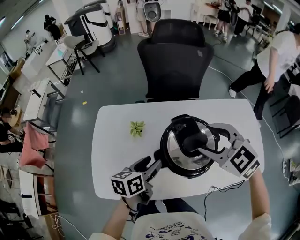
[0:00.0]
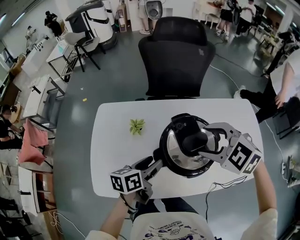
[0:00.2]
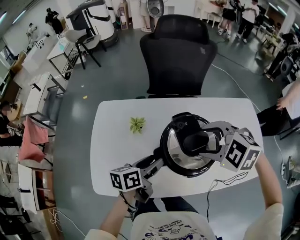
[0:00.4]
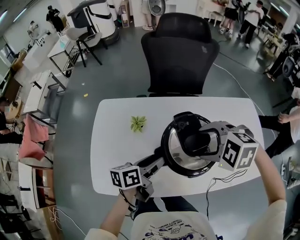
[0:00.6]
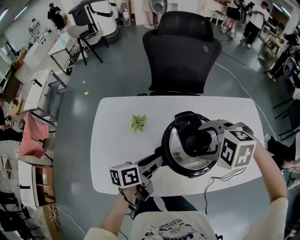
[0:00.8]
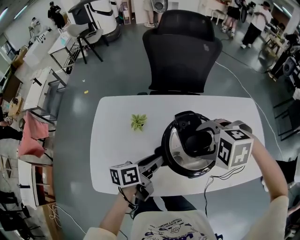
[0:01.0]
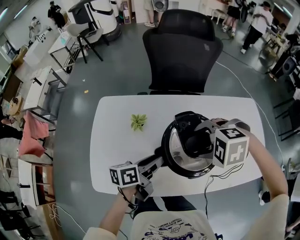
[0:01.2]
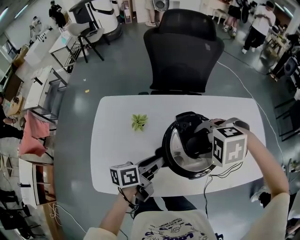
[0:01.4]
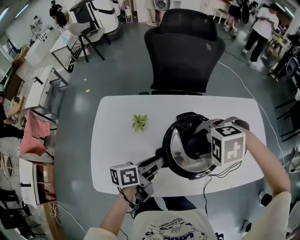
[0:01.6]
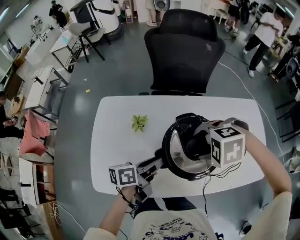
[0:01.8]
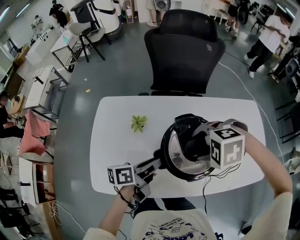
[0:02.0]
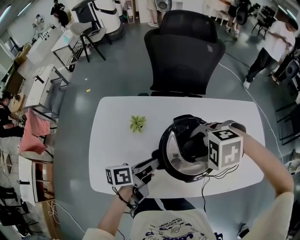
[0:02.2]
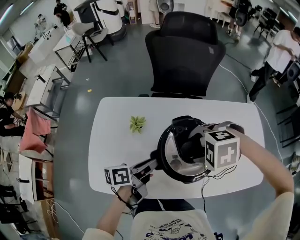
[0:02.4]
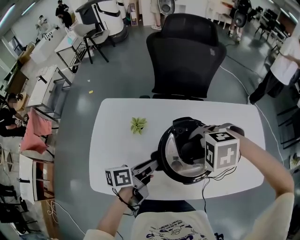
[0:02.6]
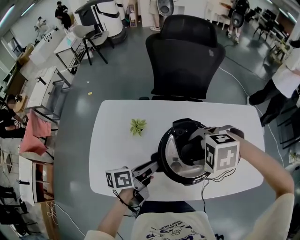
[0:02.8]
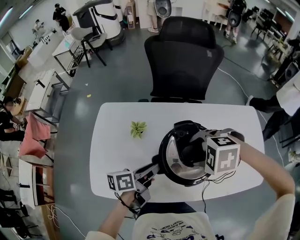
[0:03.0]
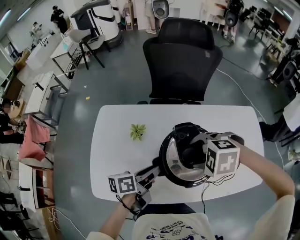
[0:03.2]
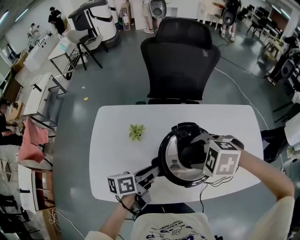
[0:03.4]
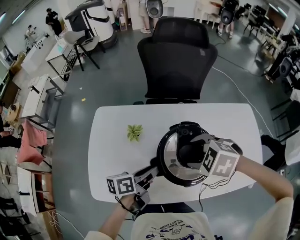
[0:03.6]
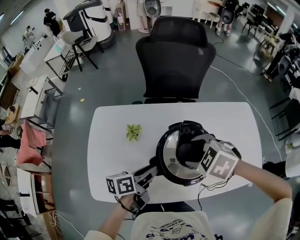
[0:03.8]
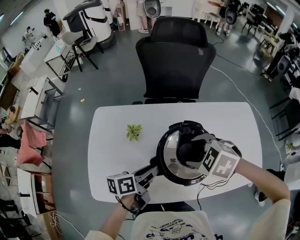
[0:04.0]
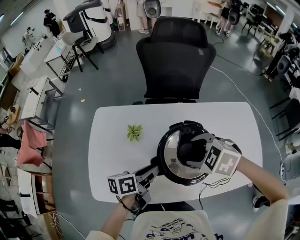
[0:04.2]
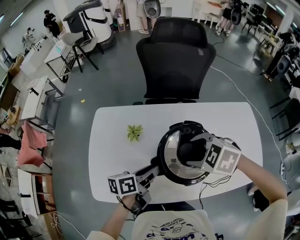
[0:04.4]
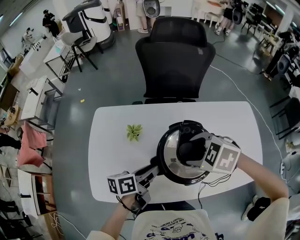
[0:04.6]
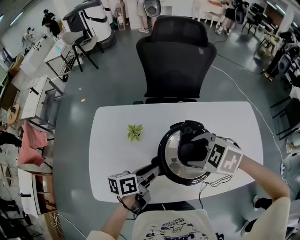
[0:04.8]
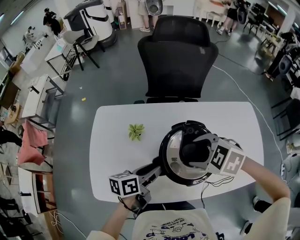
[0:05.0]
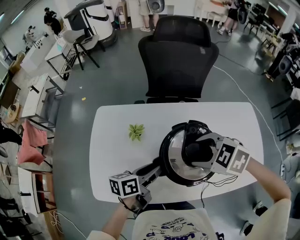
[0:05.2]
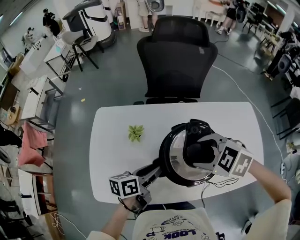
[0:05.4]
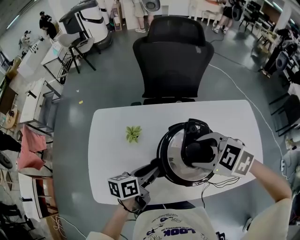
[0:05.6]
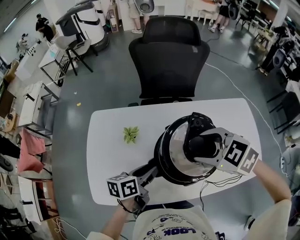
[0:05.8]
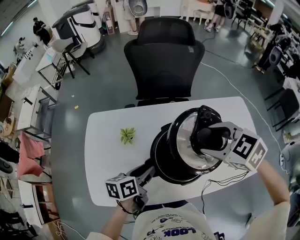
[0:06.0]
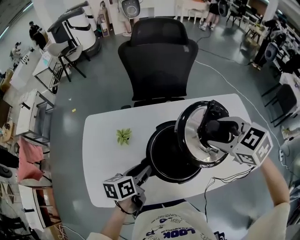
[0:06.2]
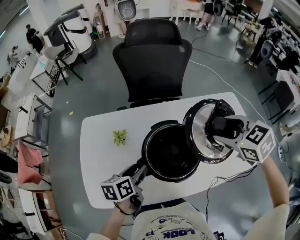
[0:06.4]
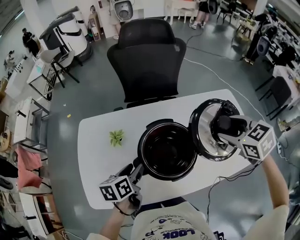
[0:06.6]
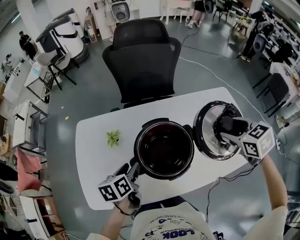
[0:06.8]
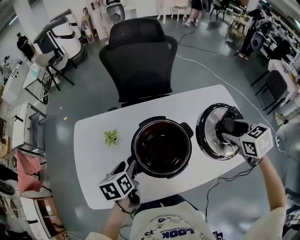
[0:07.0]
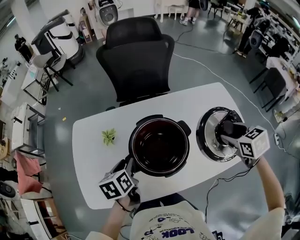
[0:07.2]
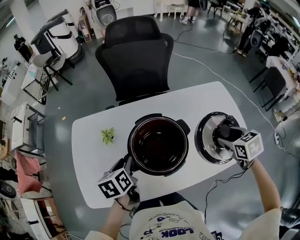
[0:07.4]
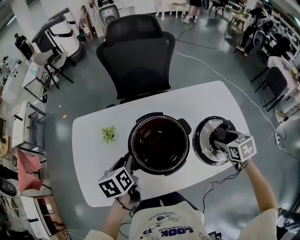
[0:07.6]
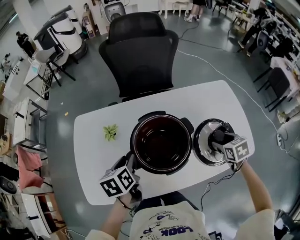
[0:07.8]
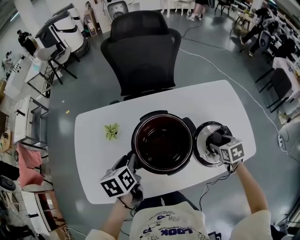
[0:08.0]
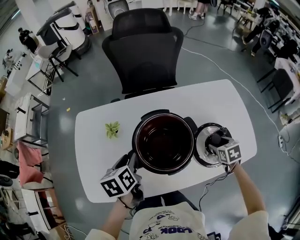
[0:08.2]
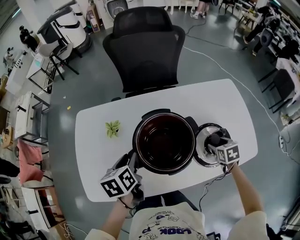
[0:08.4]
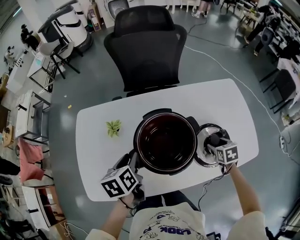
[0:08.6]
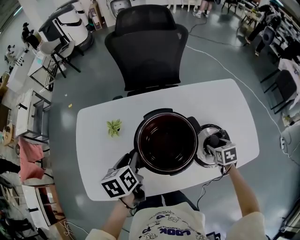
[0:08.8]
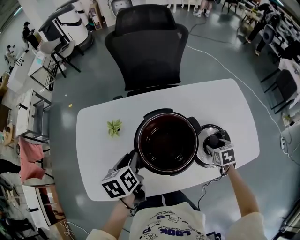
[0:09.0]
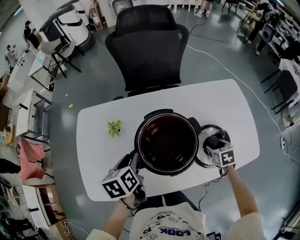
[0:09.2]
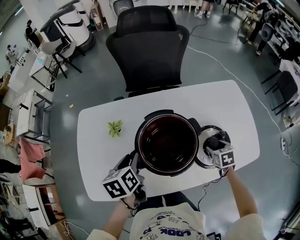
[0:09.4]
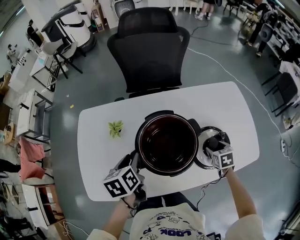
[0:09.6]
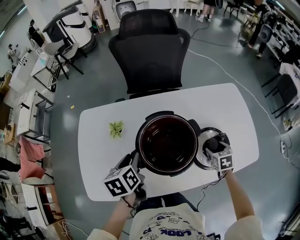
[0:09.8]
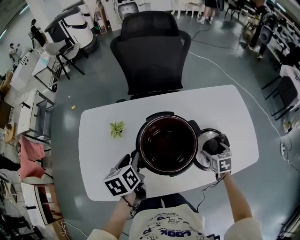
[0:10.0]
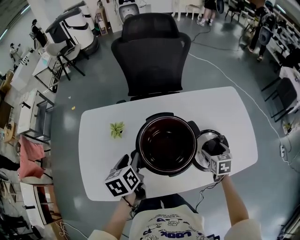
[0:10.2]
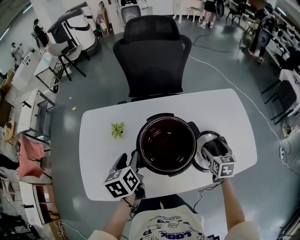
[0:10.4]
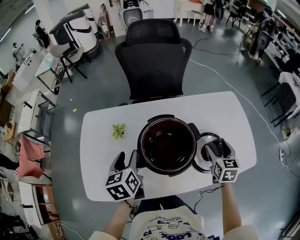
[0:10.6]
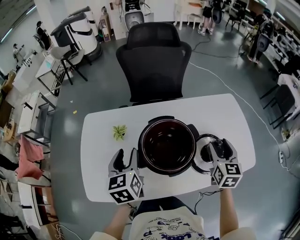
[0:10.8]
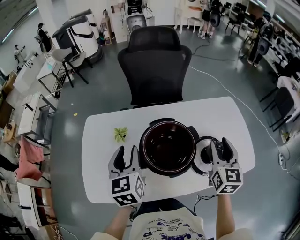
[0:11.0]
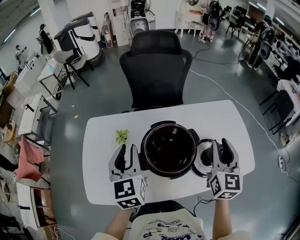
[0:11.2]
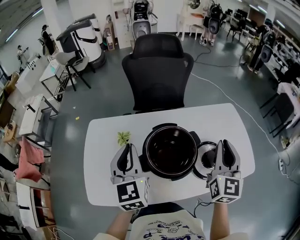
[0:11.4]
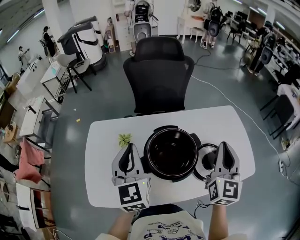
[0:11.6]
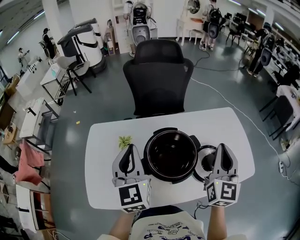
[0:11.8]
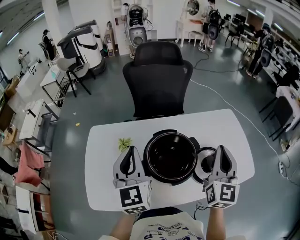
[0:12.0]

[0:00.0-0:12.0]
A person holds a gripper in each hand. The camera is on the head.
0:00.0 to 0:01.6: The left gripper changes its angle by approximately 20 degrees, and closes, while the right gripper moves downward, approximately 10 cm, and tips its fingers downward by roughly 40 degrees.
0:01.6 to 0:03.0: There are only small adjustments of the grippers.
0:03.0 to 0:04.4: The right gripper turns by roughly 30 degrees.
0:04.4 to 0:06.0: The right gripper is displaced to the right and upward by about 10 cm, and changes its angle by roughly 20 degrees.
0:06.0 to 0:07.6: The right gripper moves to the right and downward, approximately 25 cm, and turns by roughly 40 degrees, while the left gripper changes its angle by roughly 30 degrees.
0:07.6 to 0:09.0: The right gripper travels downward by some 15 cm.
0:09.0 to 0:10.4: The right gripper is displaced upward by approximately 5 cm, and changes its angle by roughly 20 degrees.
0:10.4 to 0:12.0: Both grippers travel together upward, approximately 25 cm. The left gripper angles its fingers upward, by roughly 30 degrees, and closes up. The right gripper angles its fingers upward, by some 40 degrees, and closes.

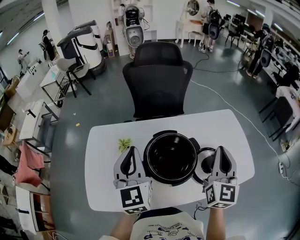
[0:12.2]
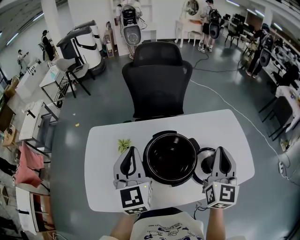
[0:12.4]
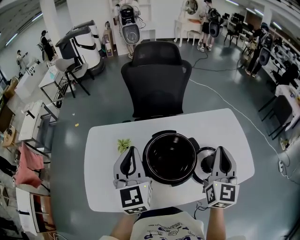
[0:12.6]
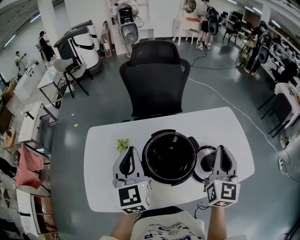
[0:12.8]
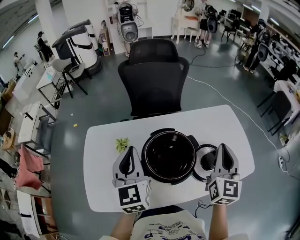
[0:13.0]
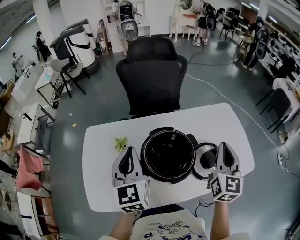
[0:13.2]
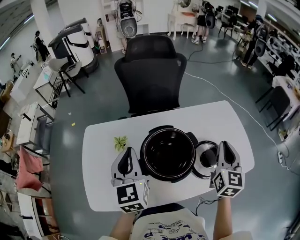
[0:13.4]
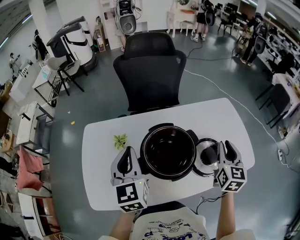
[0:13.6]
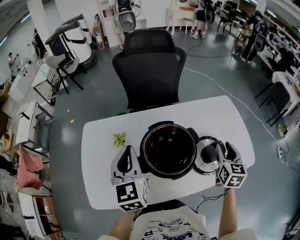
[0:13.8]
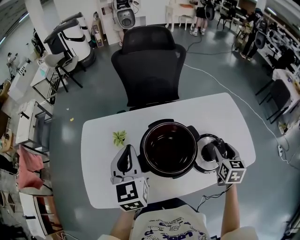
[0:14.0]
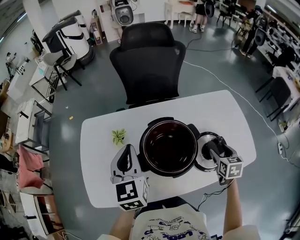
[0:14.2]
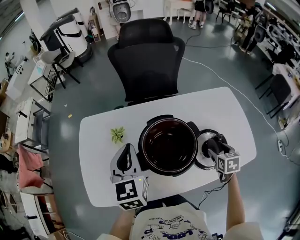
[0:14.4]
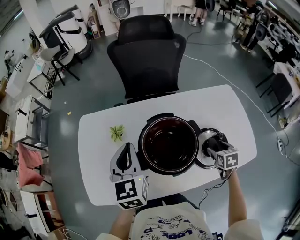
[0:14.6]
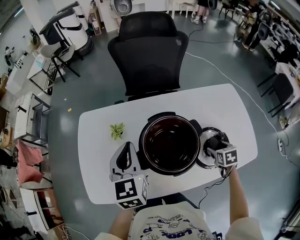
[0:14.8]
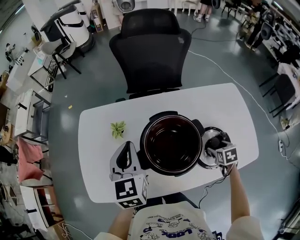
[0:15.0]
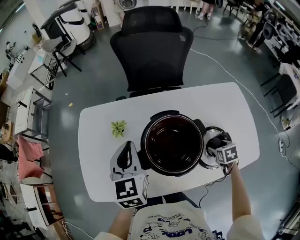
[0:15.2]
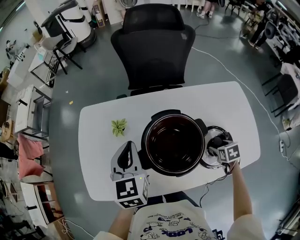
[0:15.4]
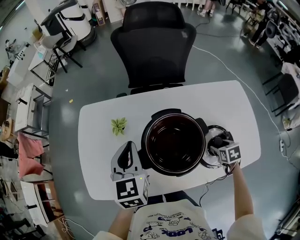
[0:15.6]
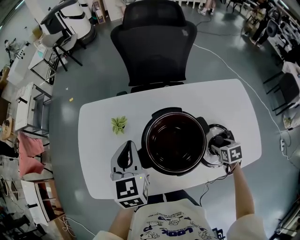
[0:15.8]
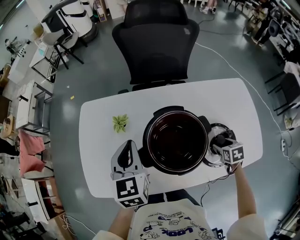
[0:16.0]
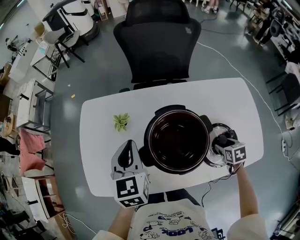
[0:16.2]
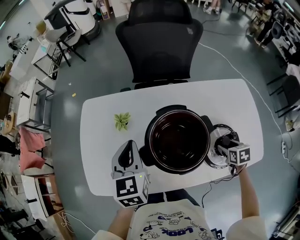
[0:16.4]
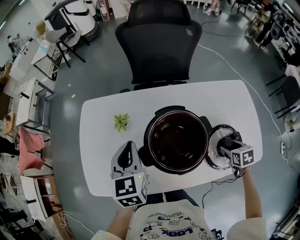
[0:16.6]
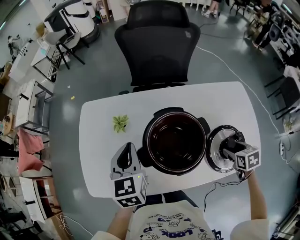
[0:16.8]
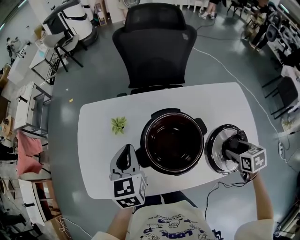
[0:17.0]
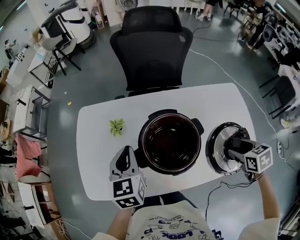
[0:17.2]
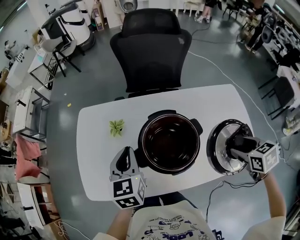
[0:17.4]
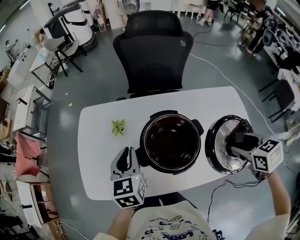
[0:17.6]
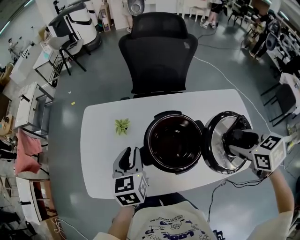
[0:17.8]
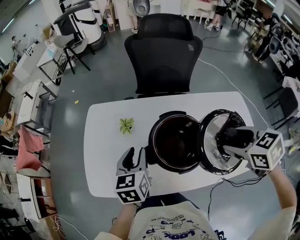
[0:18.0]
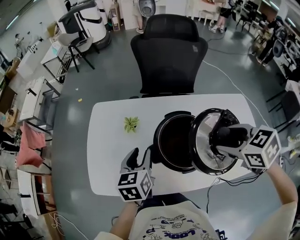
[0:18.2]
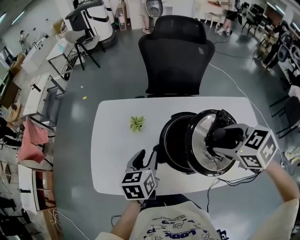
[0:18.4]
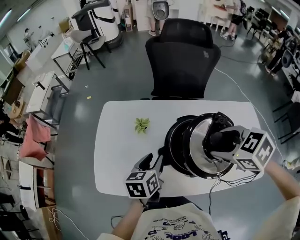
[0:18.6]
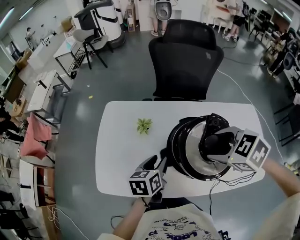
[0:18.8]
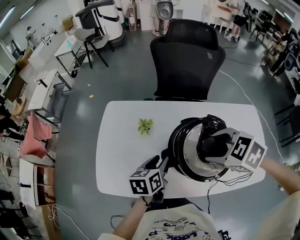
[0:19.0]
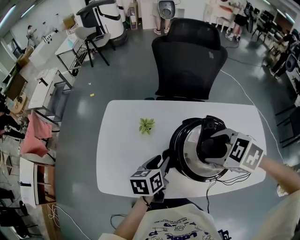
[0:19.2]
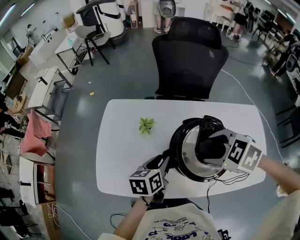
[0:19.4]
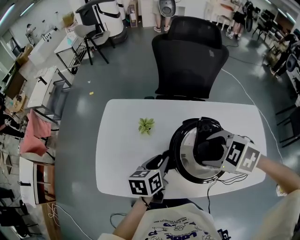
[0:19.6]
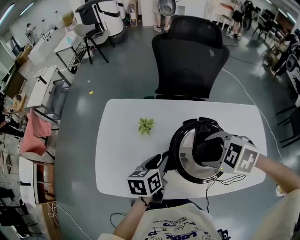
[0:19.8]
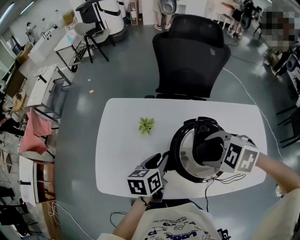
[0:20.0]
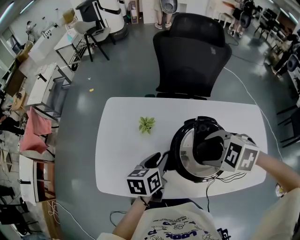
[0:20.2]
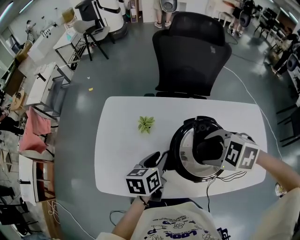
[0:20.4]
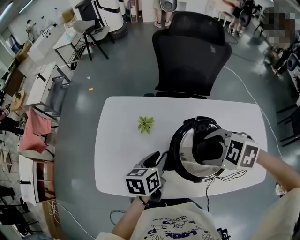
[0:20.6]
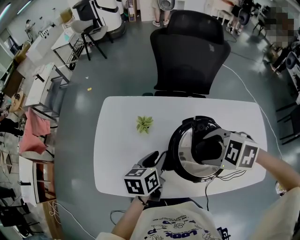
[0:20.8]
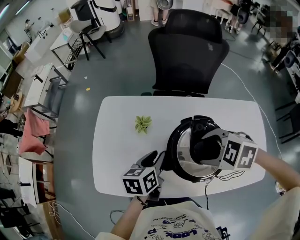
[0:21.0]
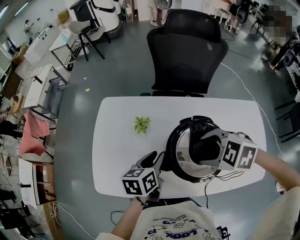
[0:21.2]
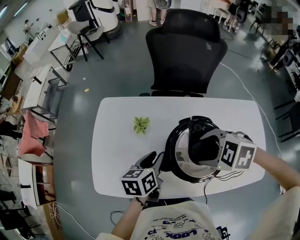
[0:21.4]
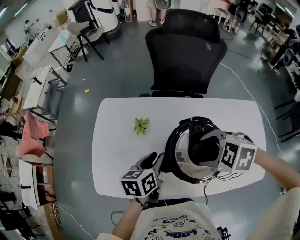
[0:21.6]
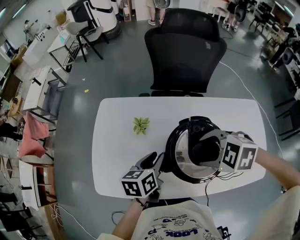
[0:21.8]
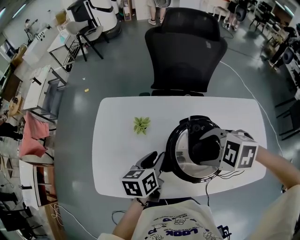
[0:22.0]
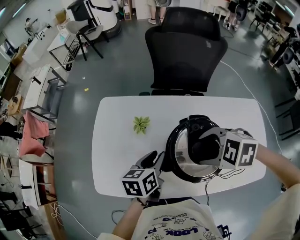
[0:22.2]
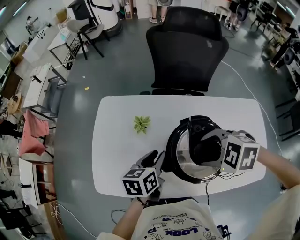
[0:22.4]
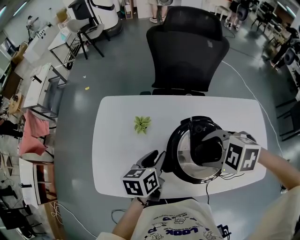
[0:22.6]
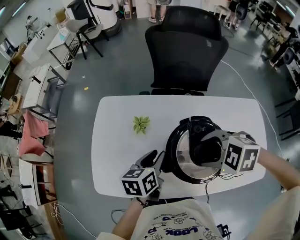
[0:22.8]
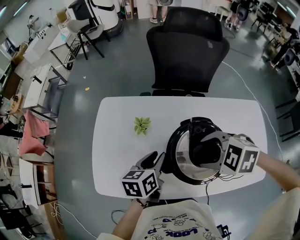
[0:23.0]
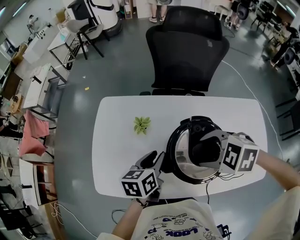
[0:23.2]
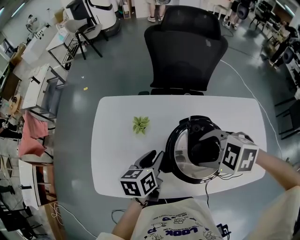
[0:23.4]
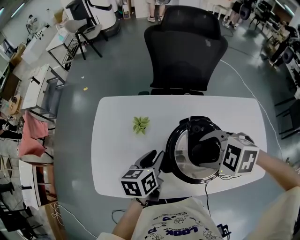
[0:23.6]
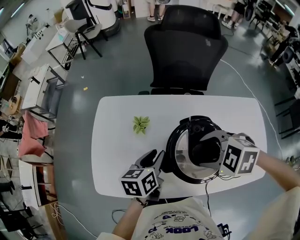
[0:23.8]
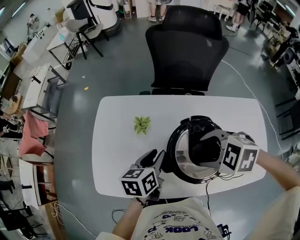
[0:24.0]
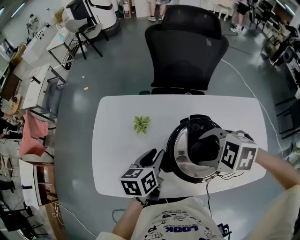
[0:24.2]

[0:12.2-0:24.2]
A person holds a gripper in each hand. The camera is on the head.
0:12.2 to 0:13.8: The right gripper is displaced downward and to the right by approximately 15 cm, changes its angle by some 30 degrees, and opens.
0:13.8 to 0:15.2: The right gripper heads downward, covering about 20 cm, tips its fingers downward by approximately 40 degrees, and opens; the left gripper is displaced downward by about 5 cm.
0:15.2 to 0:16.6: The grippers make only small movements.
0:16.6 to 0:18.2: The right gripper goes approximately 30 cm upward and to the left, and turns by approximately 40 degrees. Meanwhile the left gripper moves backward, some 5 cm, and opens.
0:18.2 to 0:19.8: The right gripper is displaced to the left, downward and forward by roughly 15 cm, and rotates approximately 40 degrees. Meanwhile the left gripper goes approximately 5 cm downward.
0:19.8 to 0:21.2: The grippers move only a little.
0:21.2 to 0:22.6: Both grippers stay about where they are.
0:22.6 to 0:24.2: Both grippers stay about where they are.
